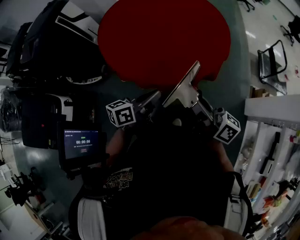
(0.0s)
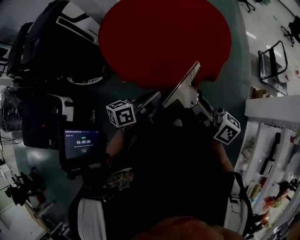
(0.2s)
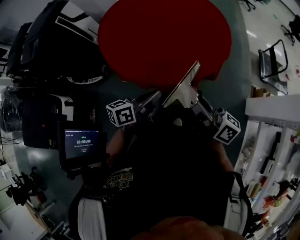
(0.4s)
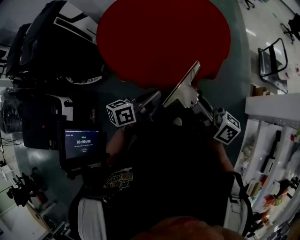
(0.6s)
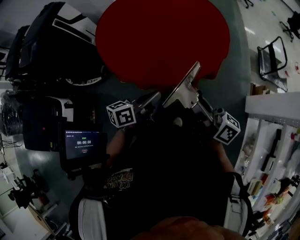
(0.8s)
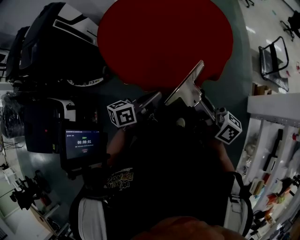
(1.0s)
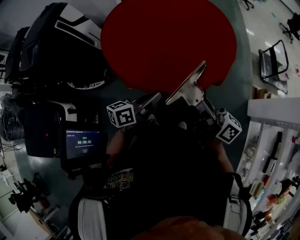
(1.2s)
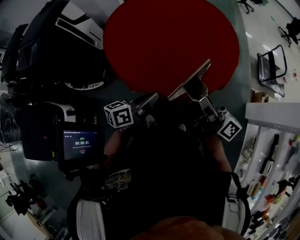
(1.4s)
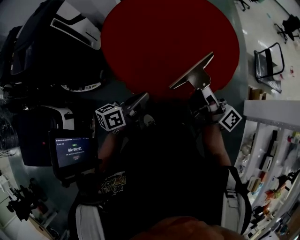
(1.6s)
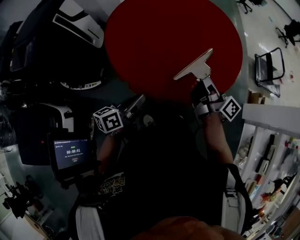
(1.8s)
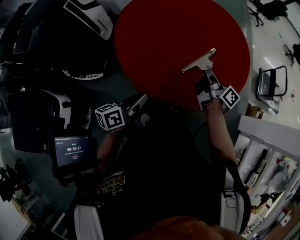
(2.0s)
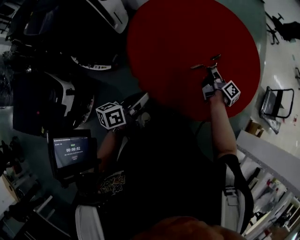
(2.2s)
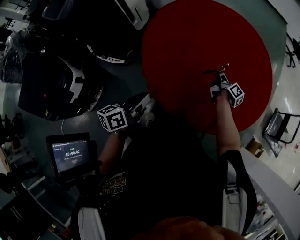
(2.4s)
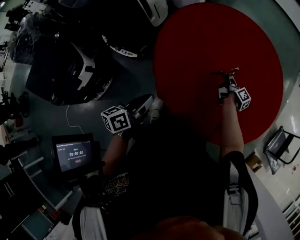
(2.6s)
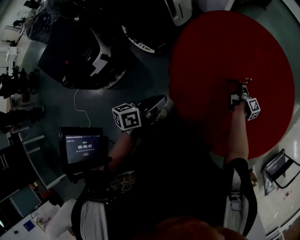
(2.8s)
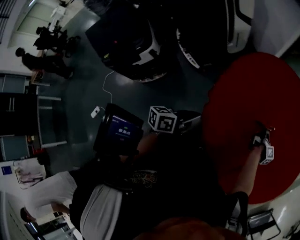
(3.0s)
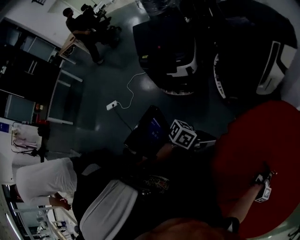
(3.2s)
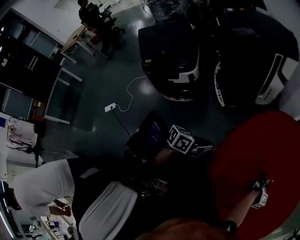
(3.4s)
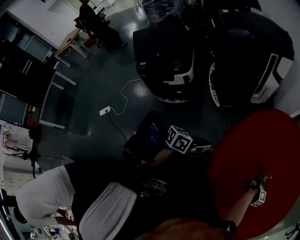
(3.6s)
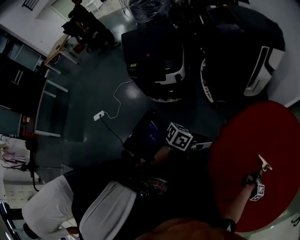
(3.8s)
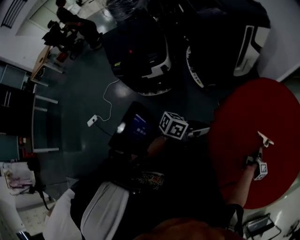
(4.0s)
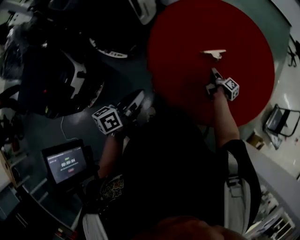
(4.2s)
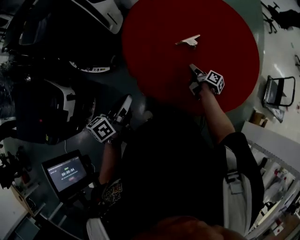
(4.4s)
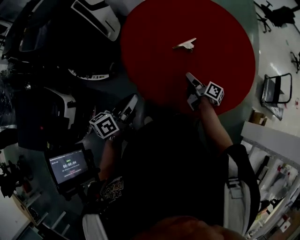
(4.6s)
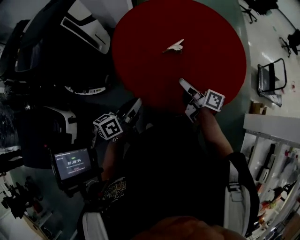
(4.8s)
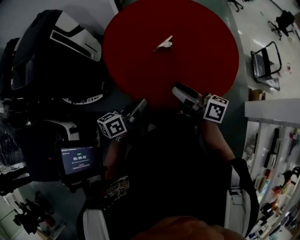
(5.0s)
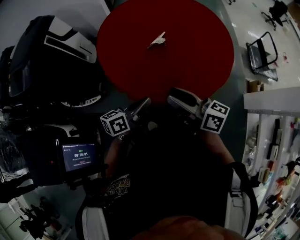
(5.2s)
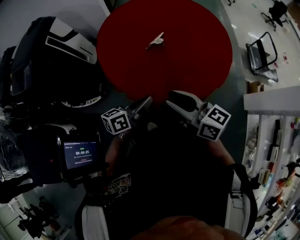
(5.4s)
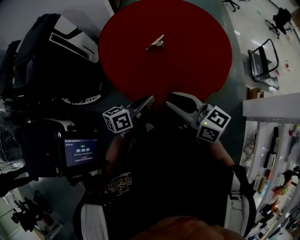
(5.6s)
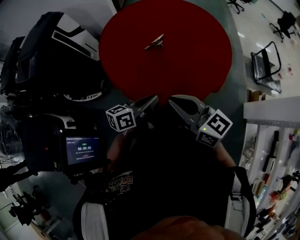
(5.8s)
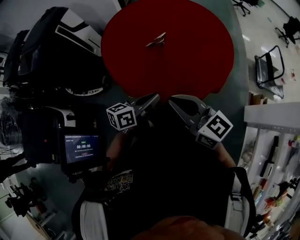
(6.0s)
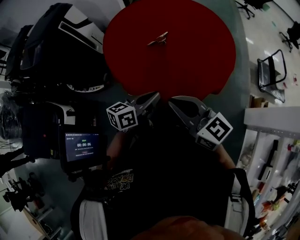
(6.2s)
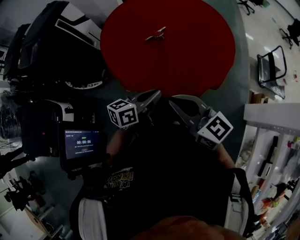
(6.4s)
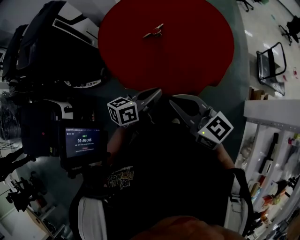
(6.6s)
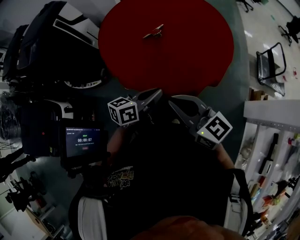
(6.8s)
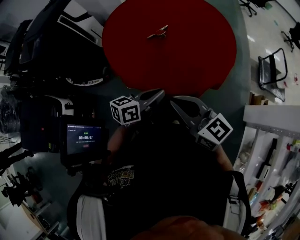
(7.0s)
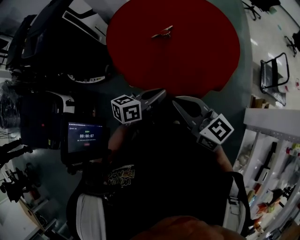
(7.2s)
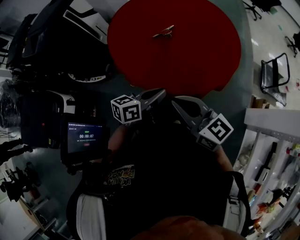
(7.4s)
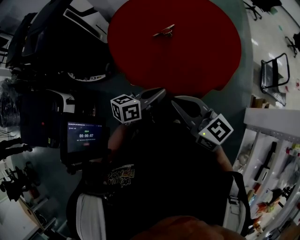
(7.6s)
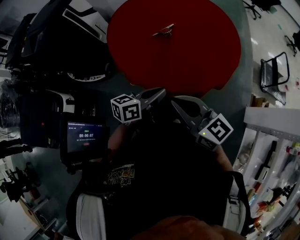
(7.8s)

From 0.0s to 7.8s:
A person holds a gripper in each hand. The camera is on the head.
From 0.0s to 1.6s: The left gripper moves to the left and forward, some 20 cm. Meanwhile the right gripper shifts some 15 cm forward and to the left.
From 1.6s to 3.2s: The right gripper ends up some 50 cm from where it was, and angles its fingers downward, by approximately 40 degrees, while the left gripper ends up some 10 cm from where it was, and changes its angle by some 50 degrees.
From 3.2s to 4.6s: The left gripper ends up approximately 5 cm from where it was, and swivels approximately 30 degrees. The right gripper heads backward and upward, covering some 30 cm, and opens up.
From 4.6s to 6.2s: The right gripper shifts roughly 35 cm upward and backward, rotates around the line of its fingers by about 60 degrees, counterclockwise from behind, and closes. The left gripper heads to the right, covering some 20 cm, and swivels approximately 20 degrees.
From 6.2s to 7.8s: The grippers make only small movements.

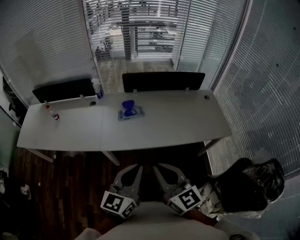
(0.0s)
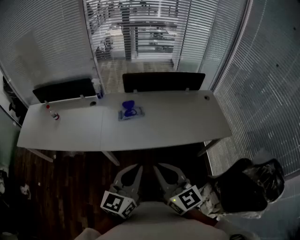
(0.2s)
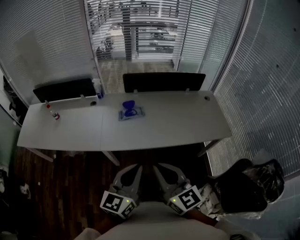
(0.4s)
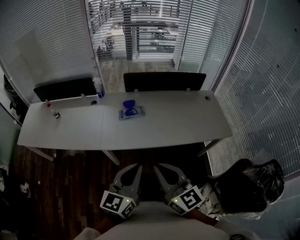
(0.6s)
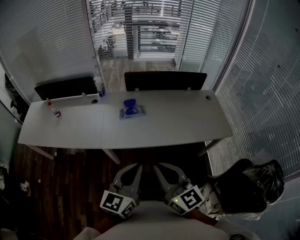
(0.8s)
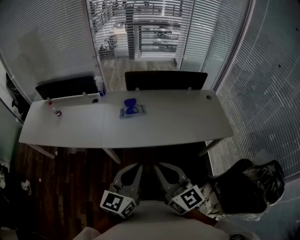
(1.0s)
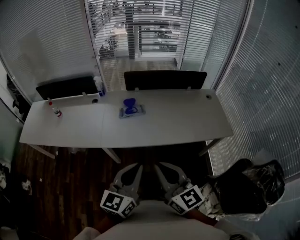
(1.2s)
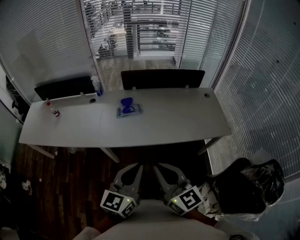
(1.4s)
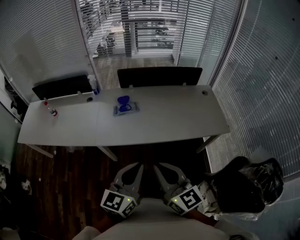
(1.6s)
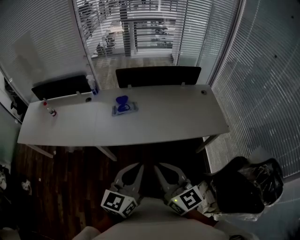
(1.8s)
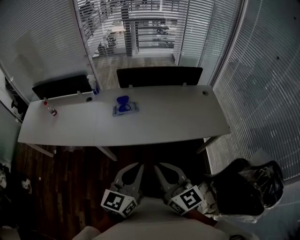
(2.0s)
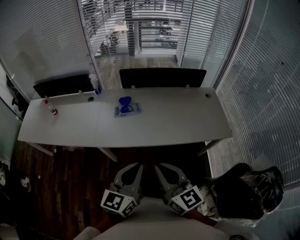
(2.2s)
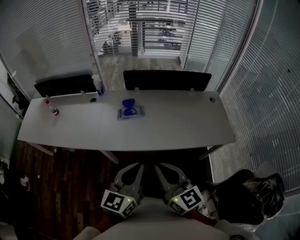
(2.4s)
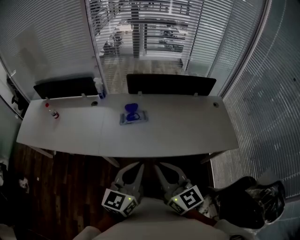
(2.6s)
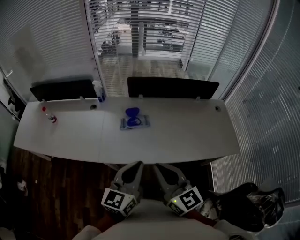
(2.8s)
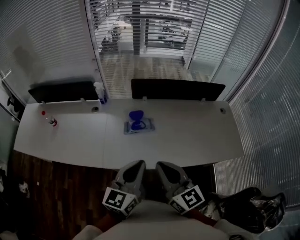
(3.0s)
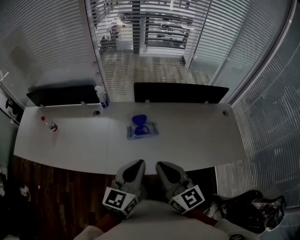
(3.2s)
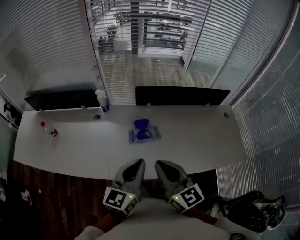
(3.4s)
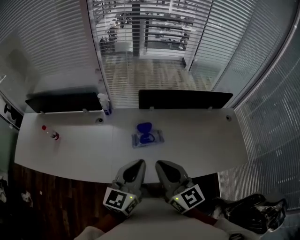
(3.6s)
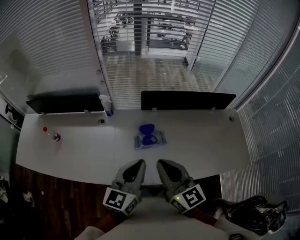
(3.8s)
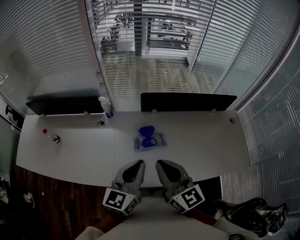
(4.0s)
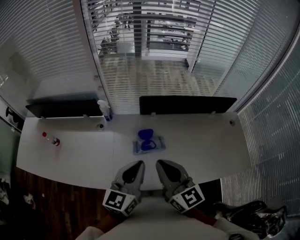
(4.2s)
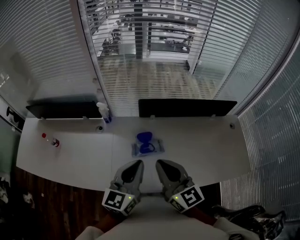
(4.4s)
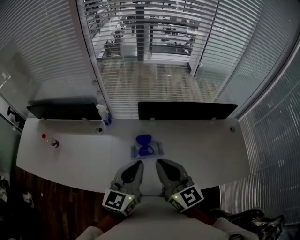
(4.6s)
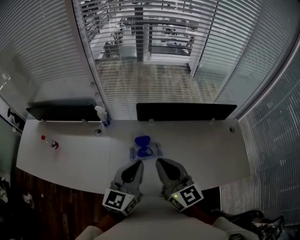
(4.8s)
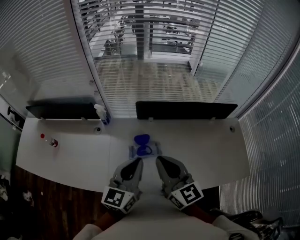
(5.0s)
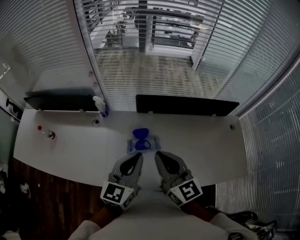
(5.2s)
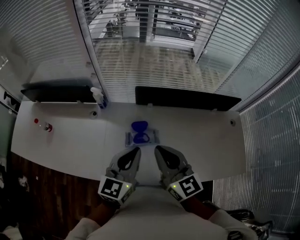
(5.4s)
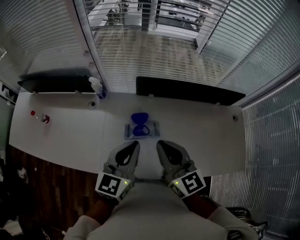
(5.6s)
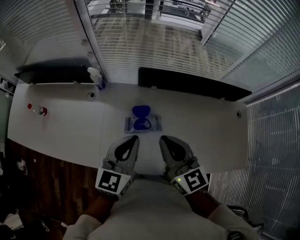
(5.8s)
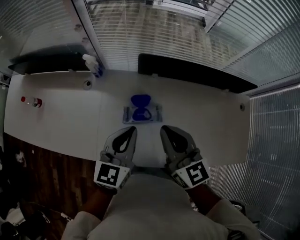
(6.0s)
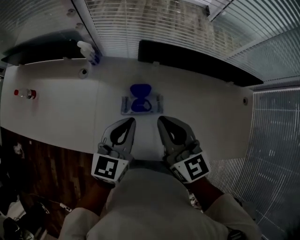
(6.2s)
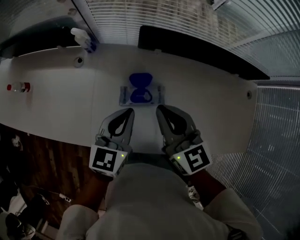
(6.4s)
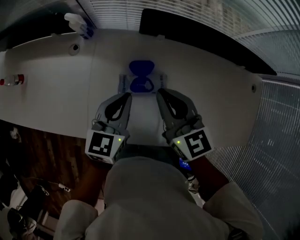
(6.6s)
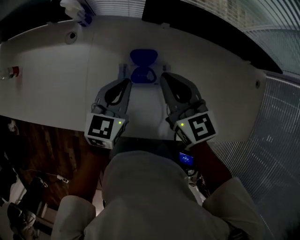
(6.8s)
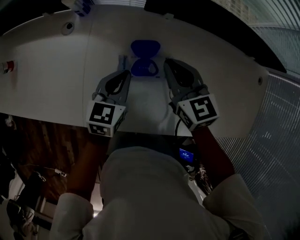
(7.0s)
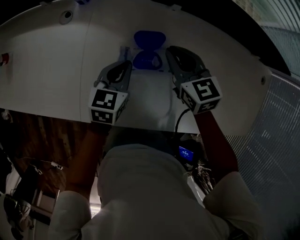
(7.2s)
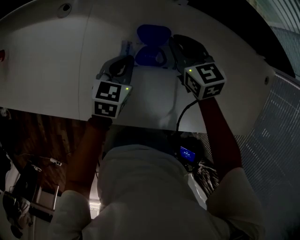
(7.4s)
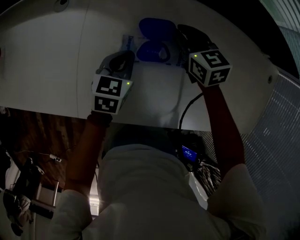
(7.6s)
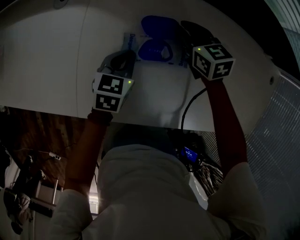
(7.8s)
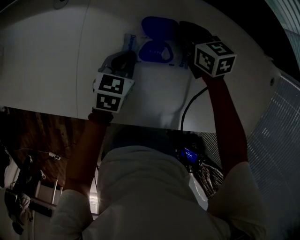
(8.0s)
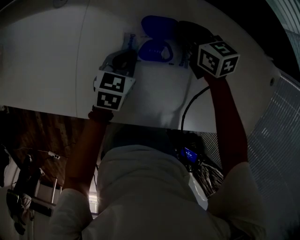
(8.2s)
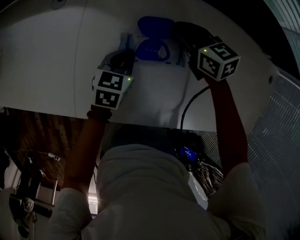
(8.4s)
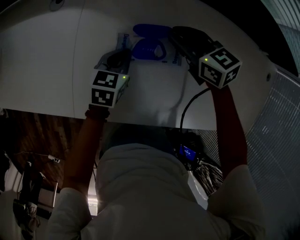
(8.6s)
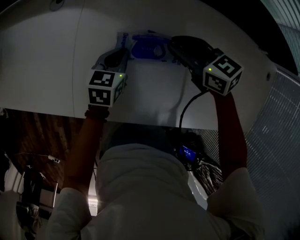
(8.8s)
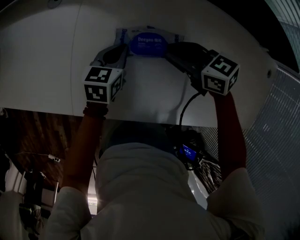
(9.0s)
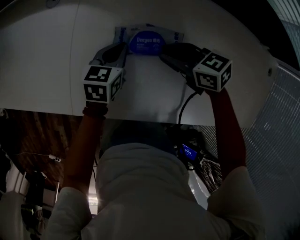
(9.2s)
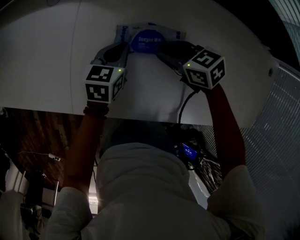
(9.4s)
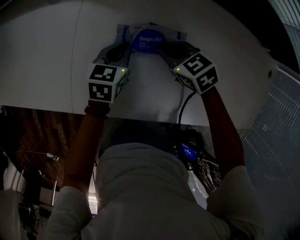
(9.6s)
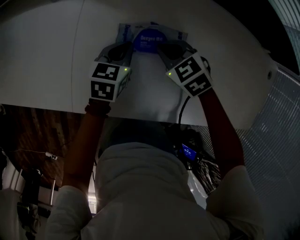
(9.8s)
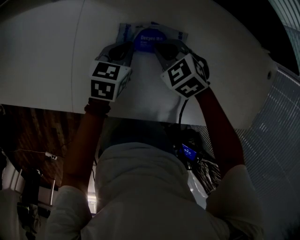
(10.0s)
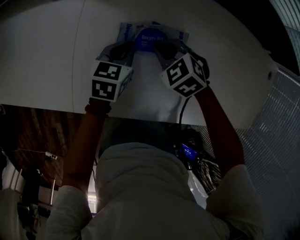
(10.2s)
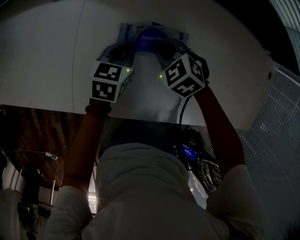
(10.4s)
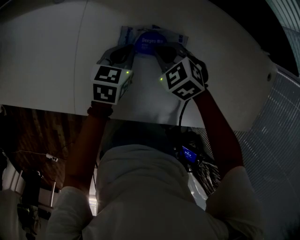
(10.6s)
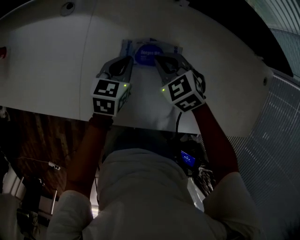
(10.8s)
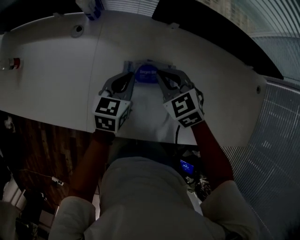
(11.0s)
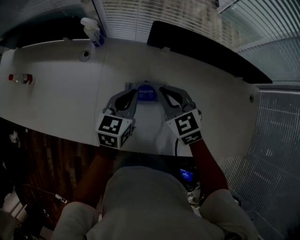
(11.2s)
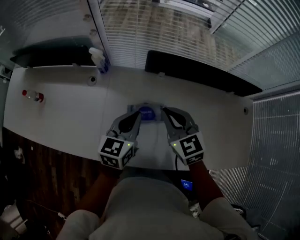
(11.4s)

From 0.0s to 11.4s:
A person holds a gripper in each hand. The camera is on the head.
From 0.0s to 1.4s: The grippers stay close to where they were, moving slightly.
From 1.4s to 2.8s: Both grippers travel together forward, roughly 15 cm.
From 2.8s to 4.2s: The left gripper is displaced forward and to the left by some 25 cm. The right gripper heads forward, covering approximately 20 cm.
From 4.2s to 5.6s: Both grippers move forward, about 5 cm.
From 5.6s to 7.2s: The right gripper shifts approximately 35 cm downward and forward, and changes its angle by some 30 degrees. The left gripper shifts about 30 cm downward, and swivels some 30 degrees.
From 7.2s to 8.6s: The left gripper travels downward by some 10 cm.
From 8.6s to 10.0s: The right gripper heads backward, downward and to the left, covering about 10 cm, swivels roughly 40 degrees, and closes up.
From 10.0s to 11.4s: Both grippers travel together upward, some 30 cm. The right gripper points its fingers some 30 degrees further upward. The left gripper changes its angle by about 20 degrees.

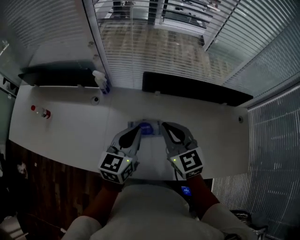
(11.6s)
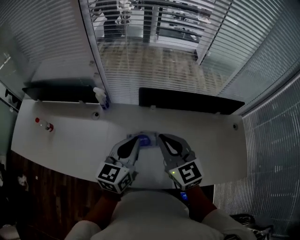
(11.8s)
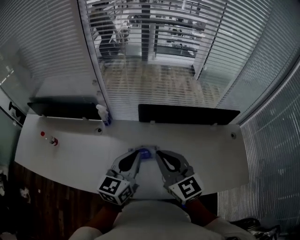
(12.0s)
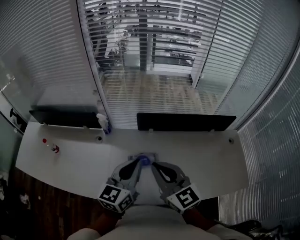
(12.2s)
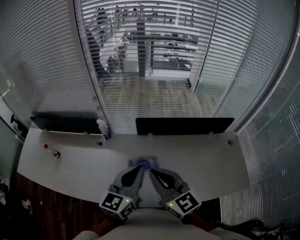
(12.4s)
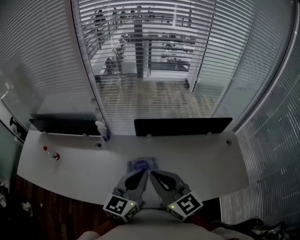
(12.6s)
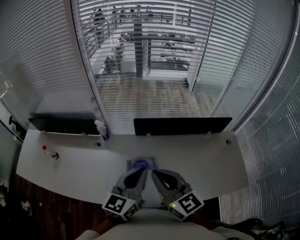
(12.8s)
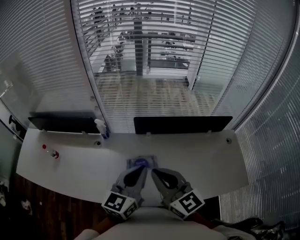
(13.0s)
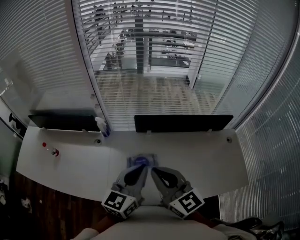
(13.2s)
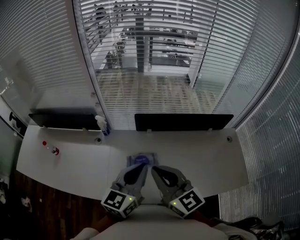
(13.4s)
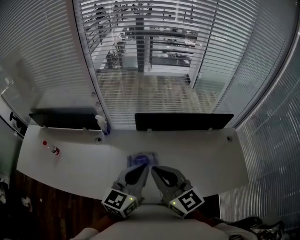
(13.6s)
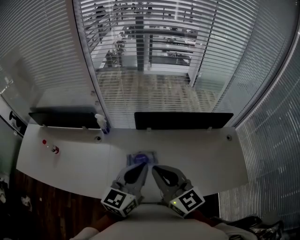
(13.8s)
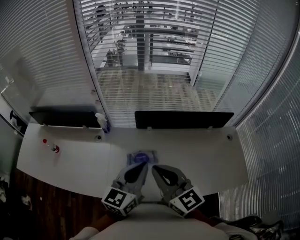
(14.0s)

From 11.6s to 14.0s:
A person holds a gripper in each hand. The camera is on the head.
From 11.6s to 12.8s: Both grippers move upward and backward, some 15 cm.
From 12.8s to 14.0s: The grippers move only a little.

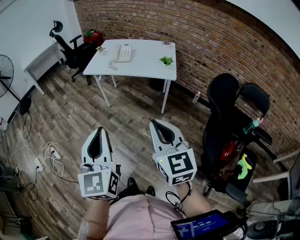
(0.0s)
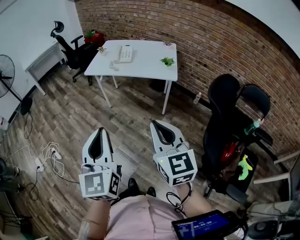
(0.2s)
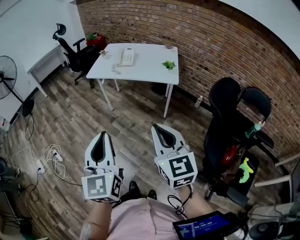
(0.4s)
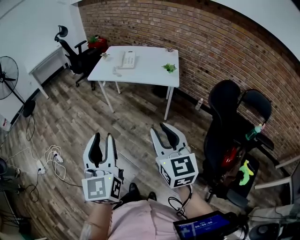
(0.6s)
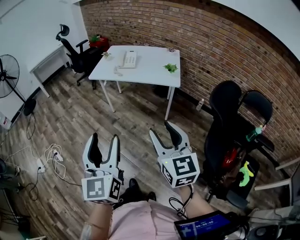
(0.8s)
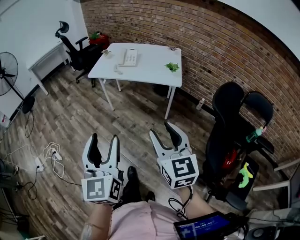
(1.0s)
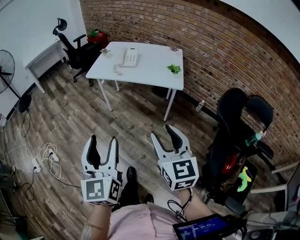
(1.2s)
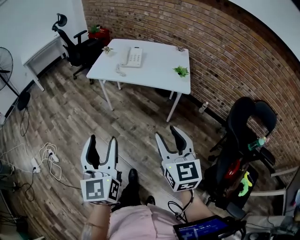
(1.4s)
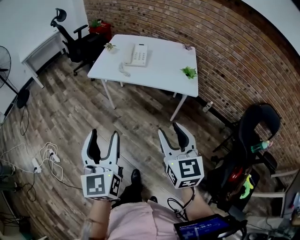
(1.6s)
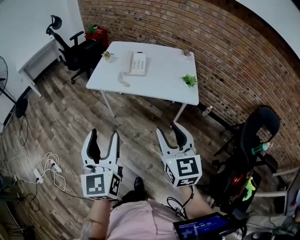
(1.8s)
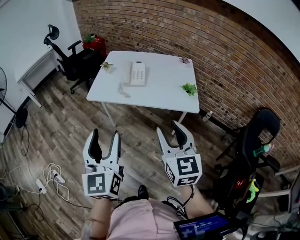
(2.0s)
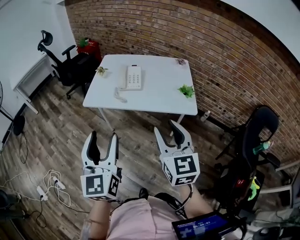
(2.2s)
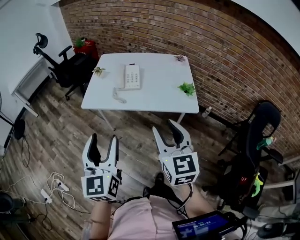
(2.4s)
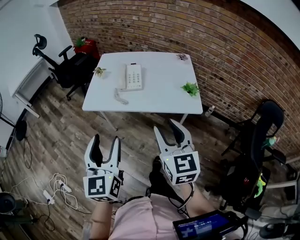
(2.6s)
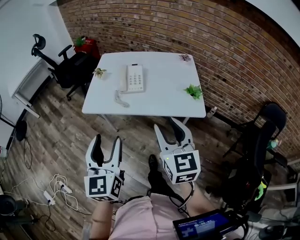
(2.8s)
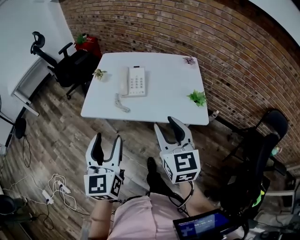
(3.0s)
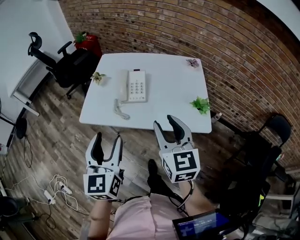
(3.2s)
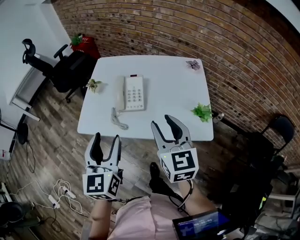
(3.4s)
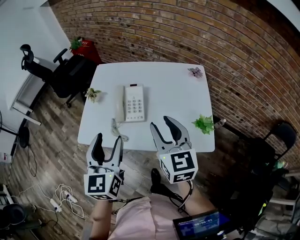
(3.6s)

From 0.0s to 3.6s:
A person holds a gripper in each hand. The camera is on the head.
From 0.0s to 1.8s: The two grippers go about 25 cm forward. The right gripper opens up; the left gripper opens its fingers.
From 1.8s to 3.6s: The two grippers go roughly 35 cm forward.
